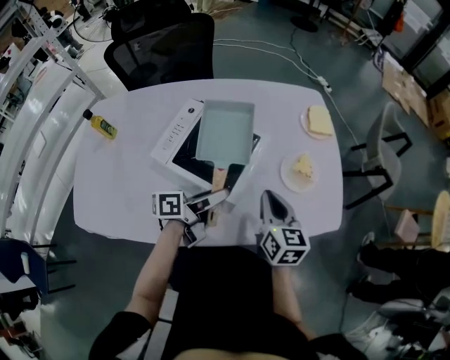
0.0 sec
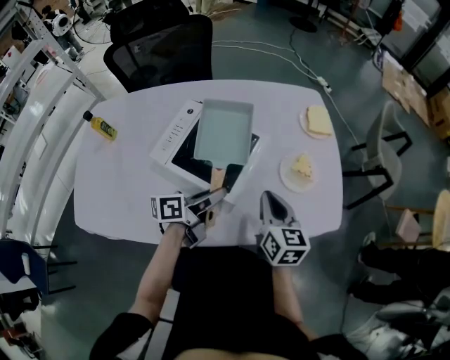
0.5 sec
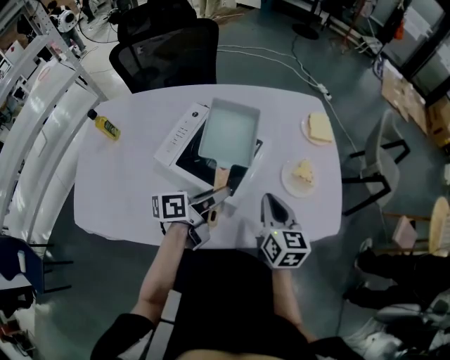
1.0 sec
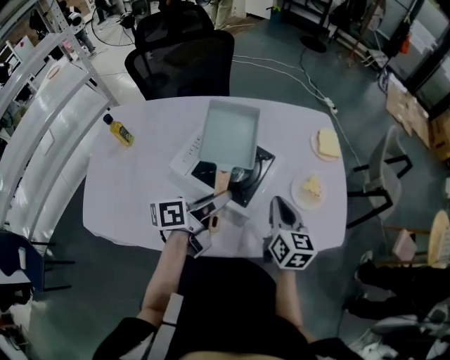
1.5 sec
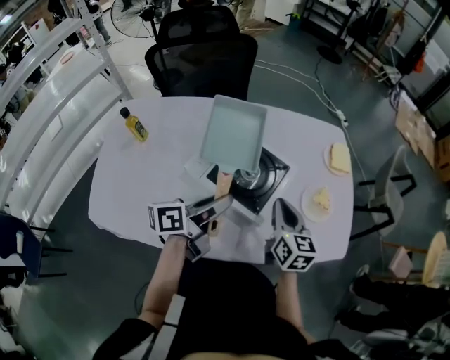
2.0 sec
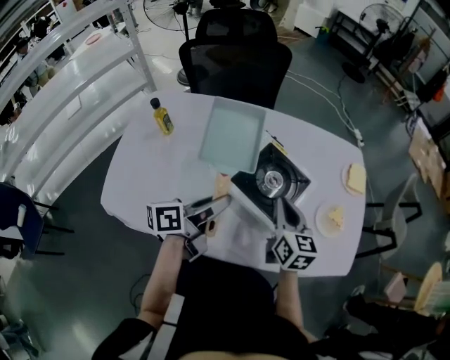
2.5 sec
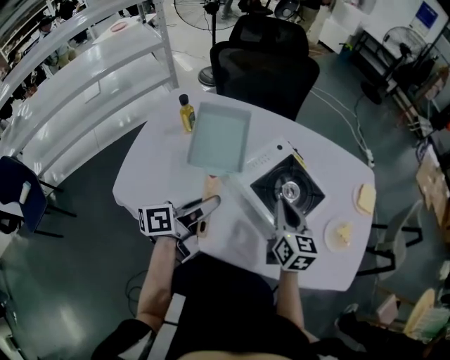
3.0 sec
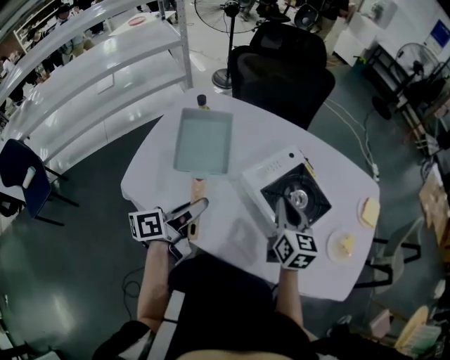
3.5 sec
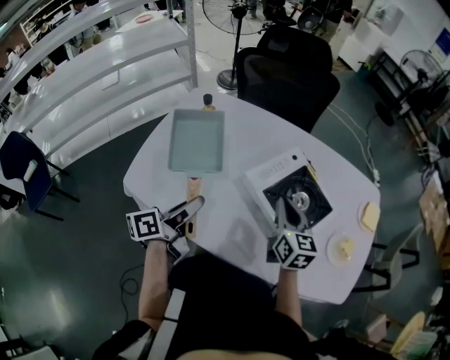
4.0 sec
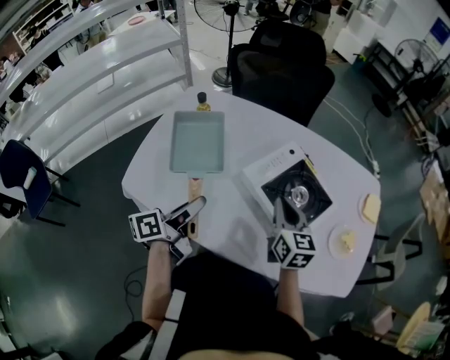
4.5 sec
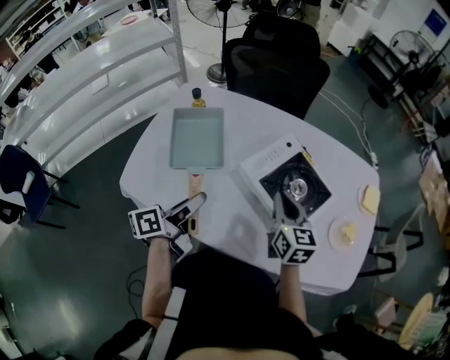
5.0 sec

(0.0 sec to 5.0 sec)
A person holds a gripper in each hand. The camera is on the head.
0.0 sec - 2.5 sec: The left gripper moves to the left and upward, about 20 cm, and closes up; the right gripper is displaced to the left by roughly 15 cm.
2.5 sec - 5.0 sec: The right gripper heads to the left, covering roughly 10 cm, while the left gripper heads to the left and backward, covering roughly 15 cm, and swivels roughly 20 degrees.

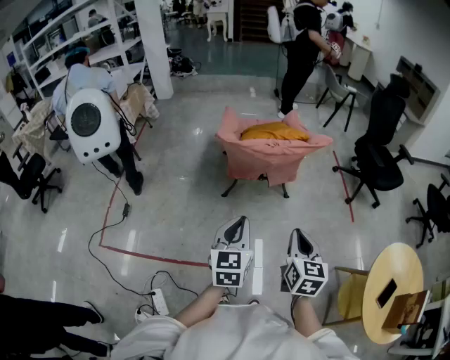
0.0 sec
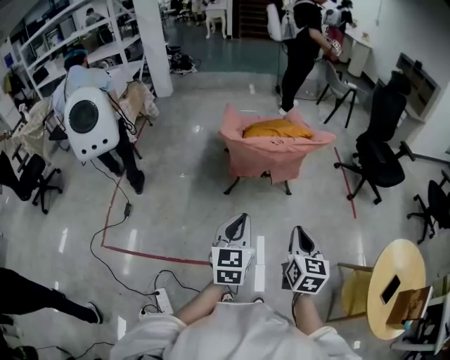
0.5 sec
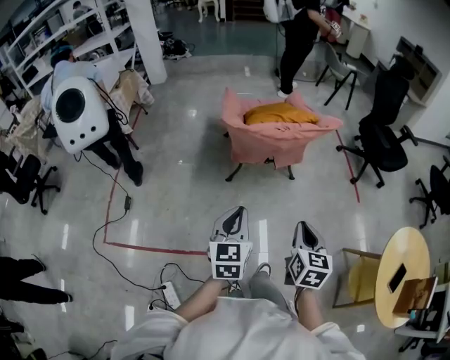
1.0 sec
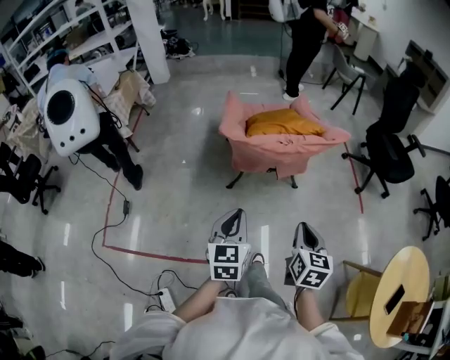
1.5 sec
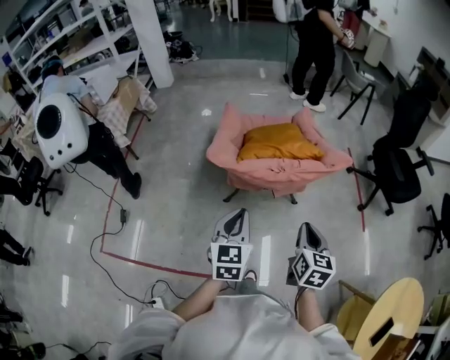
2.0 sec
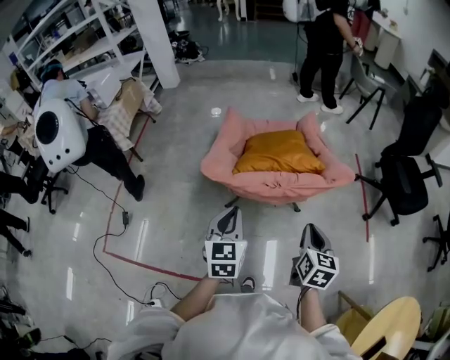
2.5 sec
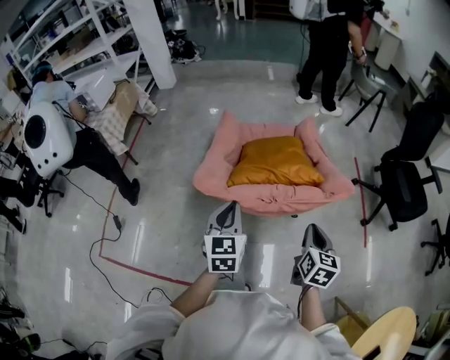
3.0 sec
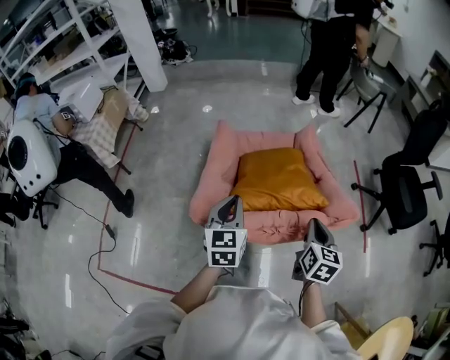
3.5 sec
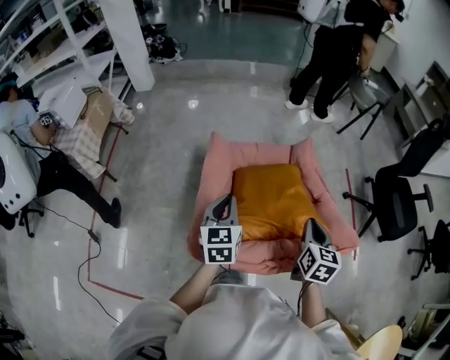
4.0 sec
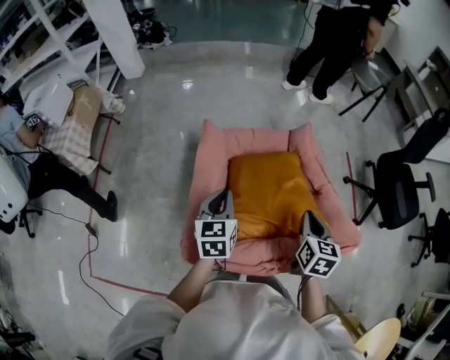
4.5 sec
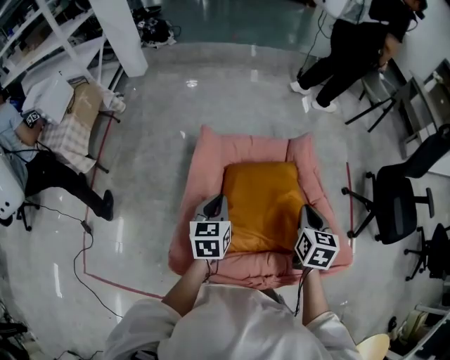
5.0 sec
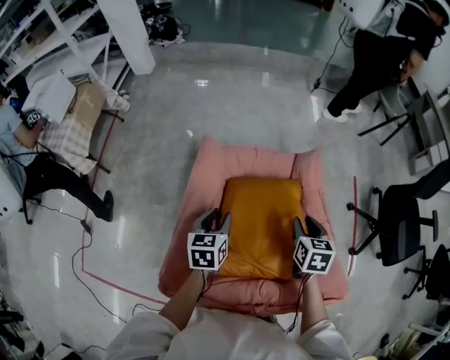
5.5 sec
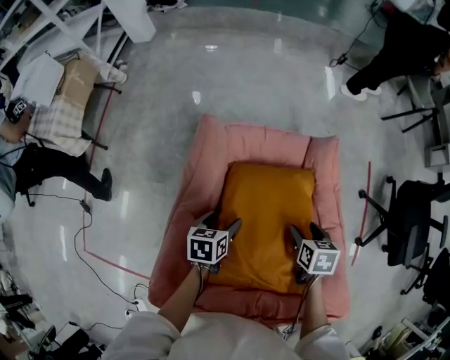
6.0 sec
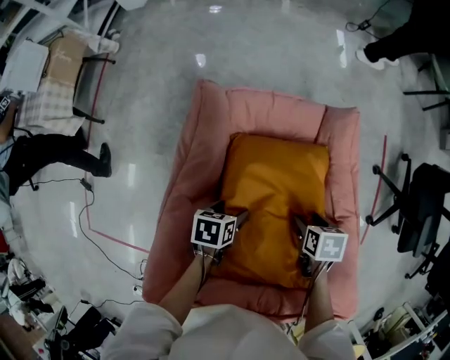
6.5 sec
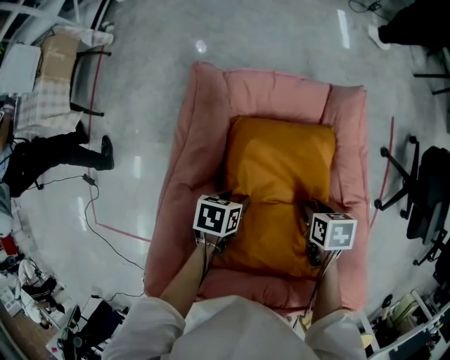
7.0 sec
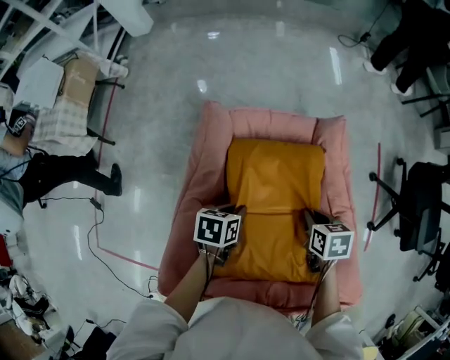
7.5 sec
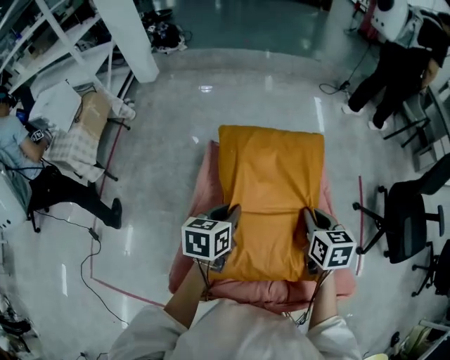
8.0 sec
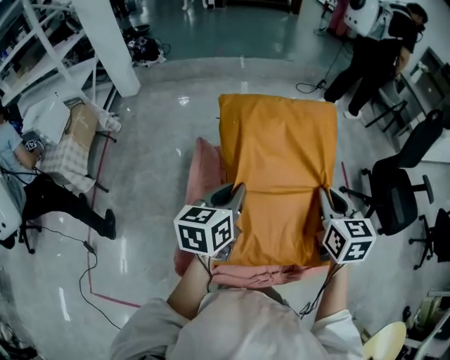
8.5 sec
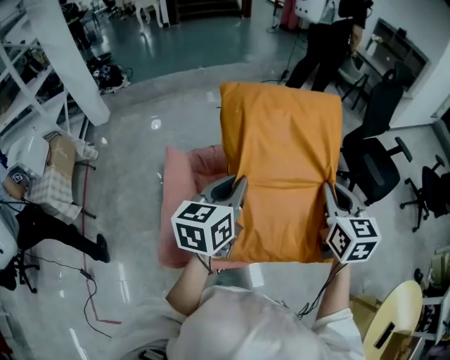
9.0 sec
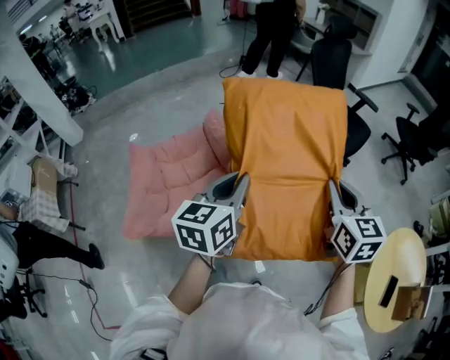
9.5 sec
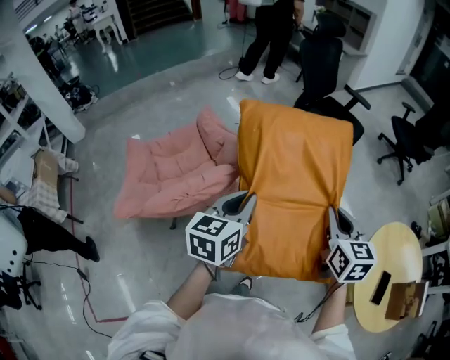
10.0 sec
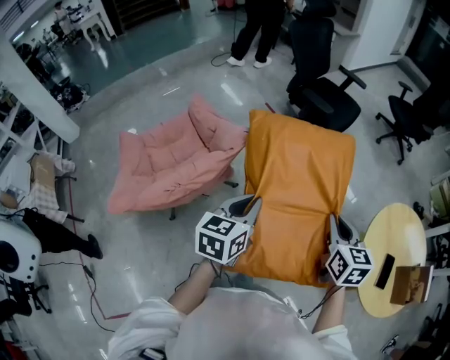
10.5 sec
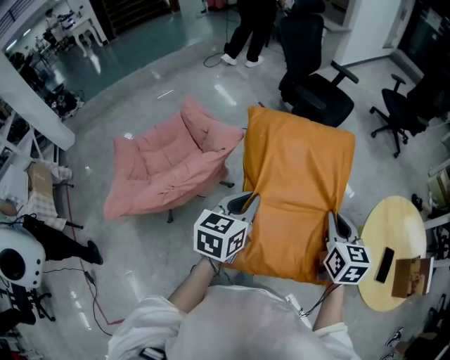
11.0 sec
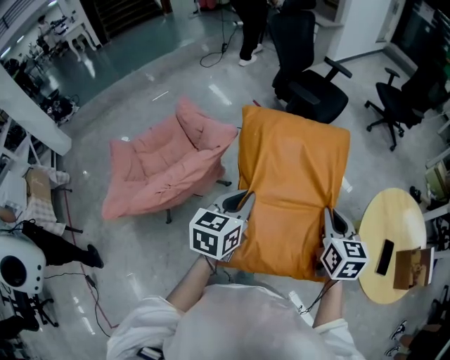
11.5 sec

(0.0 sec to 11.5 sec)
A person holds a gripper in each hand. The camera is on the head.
0.0 sec - 2.0 sec: The grippers both shift forward by approximately 25 cm.
2.0 sec - 4.0 sec: Both grippers travel together forward, about 40 cm.
4.0 sec - 6.0 sec: The two grippers go roughly 25 cm downward and forward. The left gripper swivels some 40 degrees, and opens. The right gripper tips its fingers downward by roughly 30 degrees, and opens its fingers.
6.0 sec - 7.5 sec: The left gripper moves roughly 10 cm downward and comes back, and closes, while the right gripper goes downward and returns, some 10 cm each way, and closes its fingers.
7.5 sec - 9.5 sec: The two grippers travel together, about 50 cm. The right gripper points its fingers about 40 degrees further upward. Meanwhile the left gripper points its fingers some 40 degrees further upward.
9.5 sec - 11.5 sec: The right gripper shifts some 25 cm to the right, backward and downward. The left gripper goes some 20 cm to the right, downward and backward.

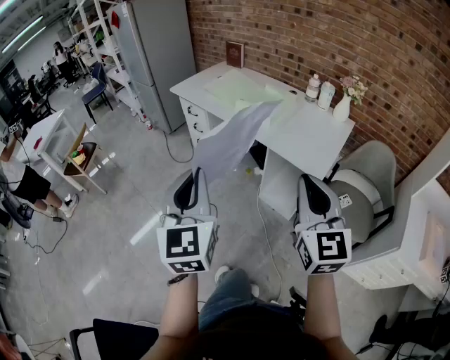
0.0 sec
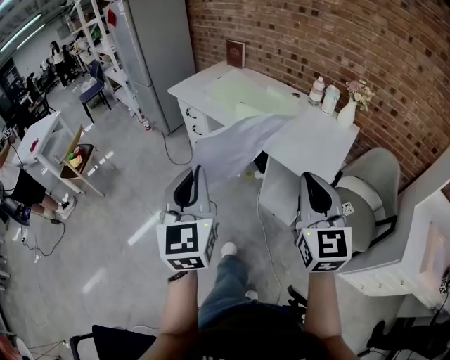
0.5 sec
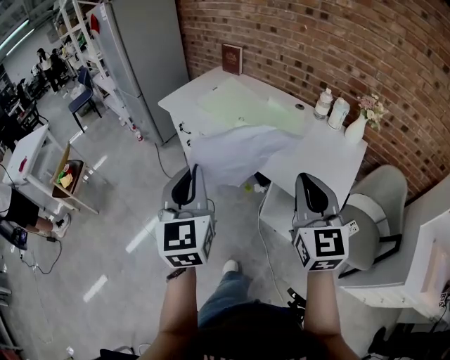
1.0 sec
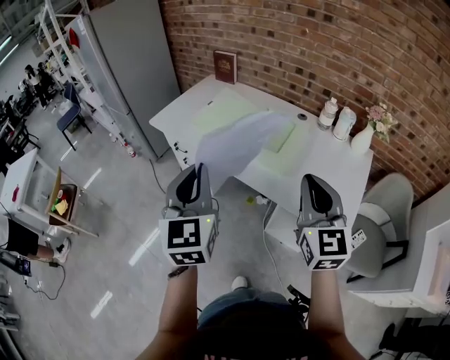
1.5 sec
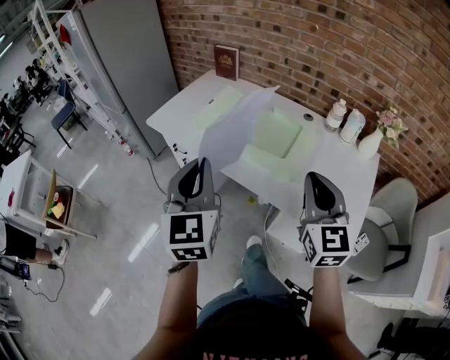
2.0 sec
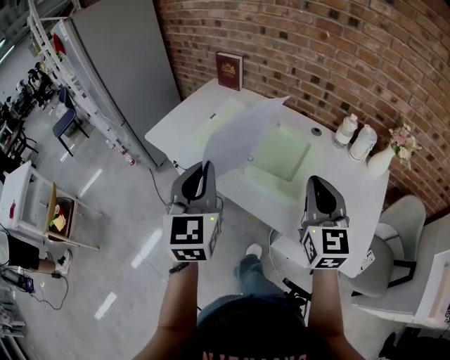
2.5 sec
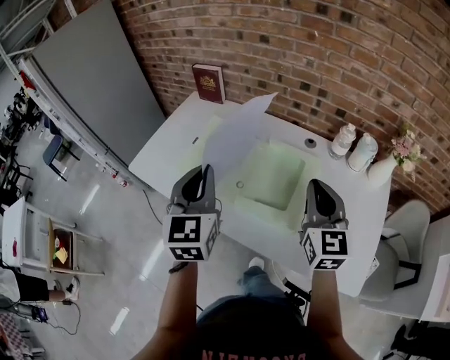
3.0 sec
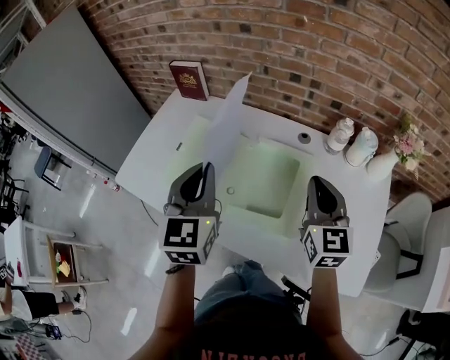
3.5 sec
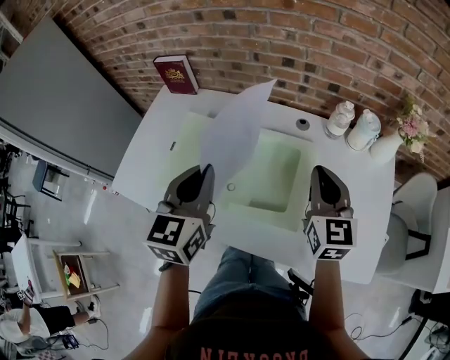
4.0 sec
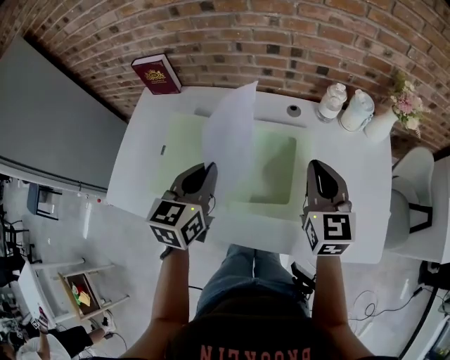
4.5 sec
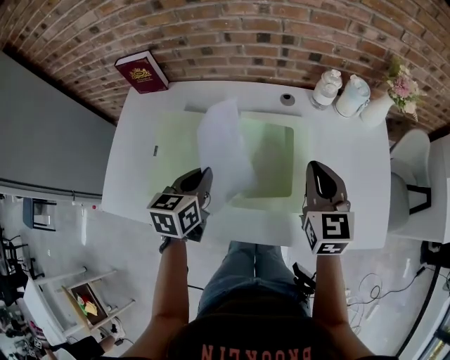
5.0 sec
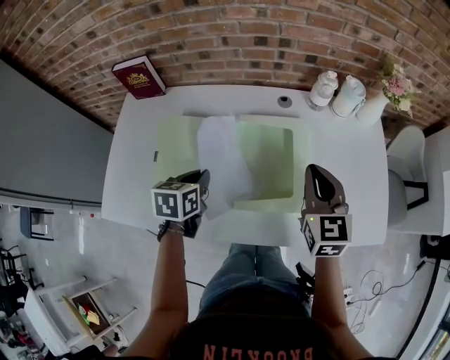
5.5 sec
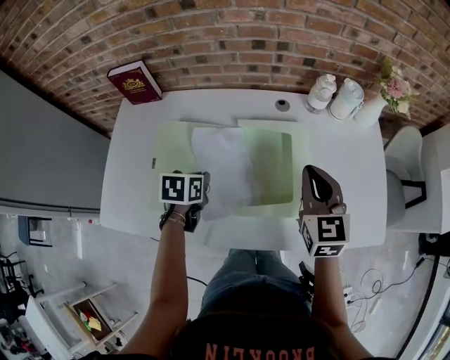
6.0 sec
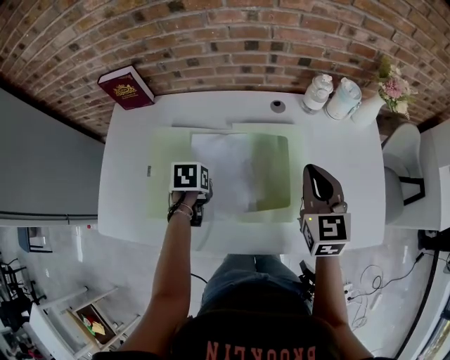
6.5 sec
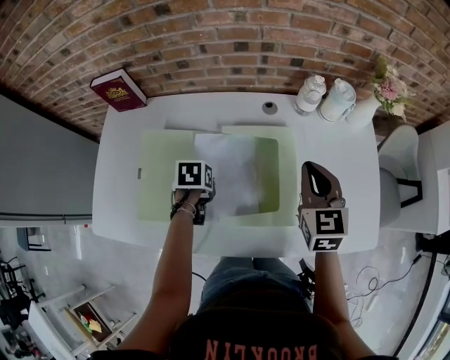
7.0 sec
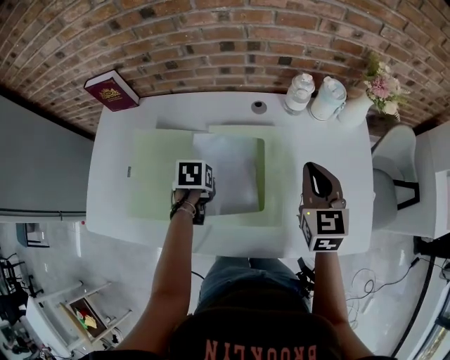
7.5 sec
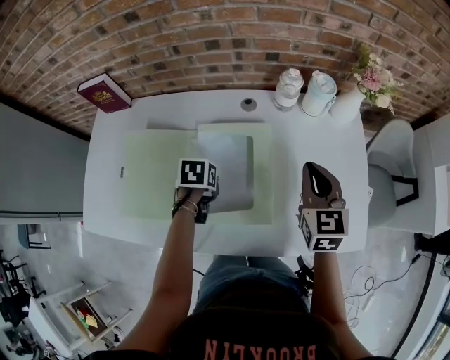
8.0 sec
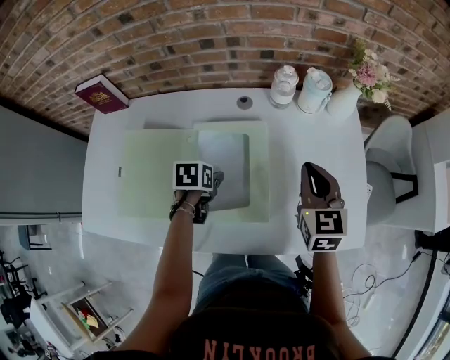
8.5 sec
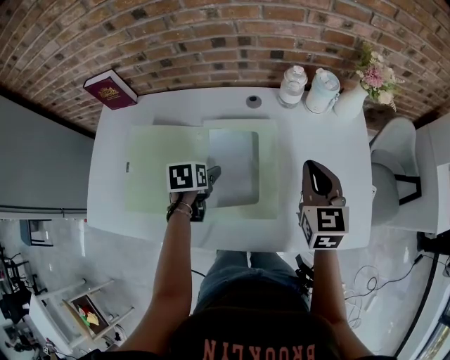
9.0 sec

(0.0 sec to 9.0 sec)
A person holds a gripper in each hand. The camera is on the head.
0.0 sec - 2.0 sec: The pair of grippers is taken forward, about 40 cm.
2.0 sec - 4.5 sec: The right gripper moves approximately 30 cm, and changes its angle by some 30 degrees, while the left gripper moves roughly 40 cm, and turns by about 50 degrees.
4.5 sec - 7.0 sec: The right gripper ends up about 5 cm from where it was, while the left gripper heads downward, covering some 20 cm, and tilts its fingers about 50 degrees downward.
7.0 sec - 9.0 sec: The two grippers go approximately 5 cm to the right. The left gripper opens.

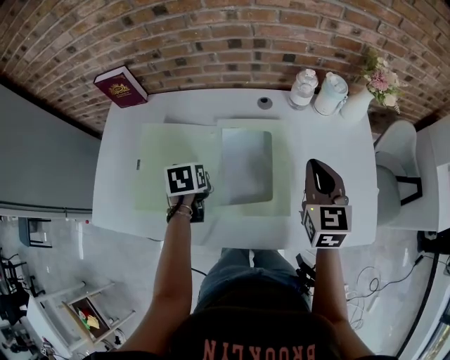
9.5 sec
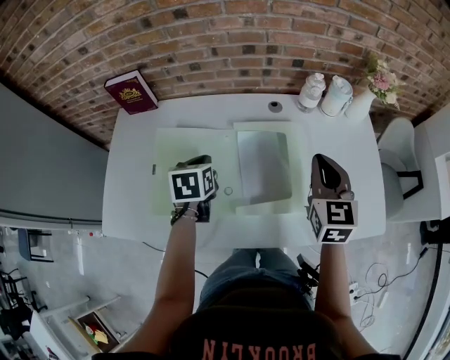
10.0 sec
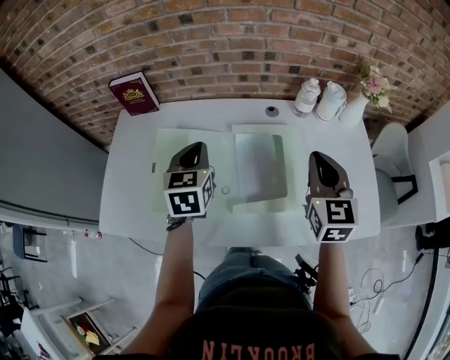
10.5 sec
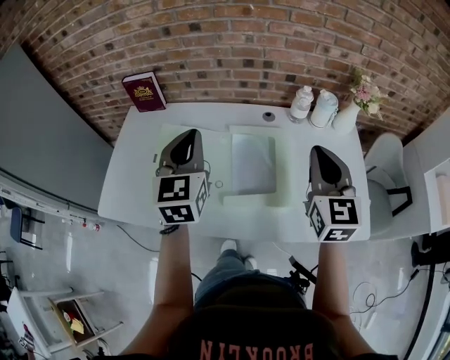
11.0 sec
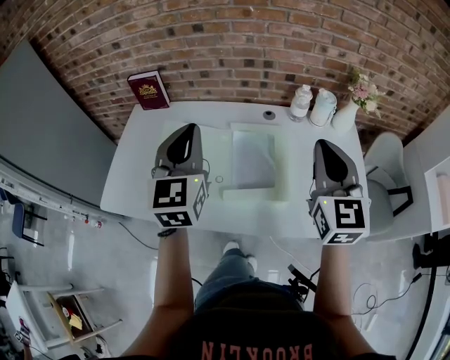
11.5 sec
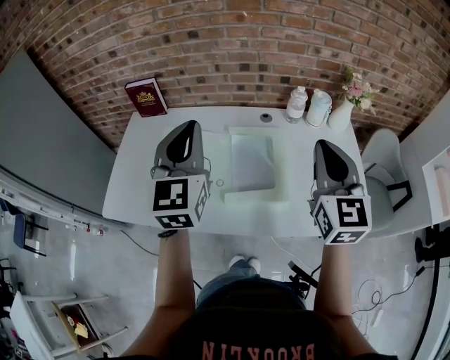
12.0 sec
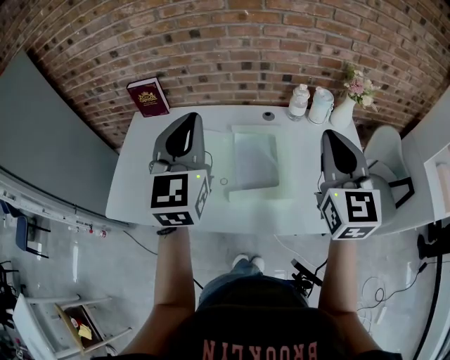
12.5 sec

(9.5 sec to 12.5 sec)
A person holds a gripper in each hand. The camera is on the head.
9.5 sec - 11.0 sec: The left gripper travels upward by about 25 cm, and angles its fingers upward, by about 50 degrees, while the right gripper travels upward and backward by about 15 cm.
11.0 sec - 12.5 sec: Both grippers move upward, some 10 cm.
